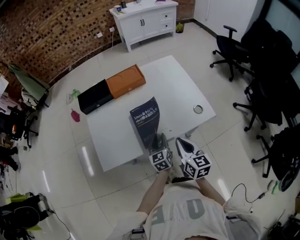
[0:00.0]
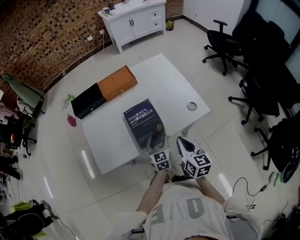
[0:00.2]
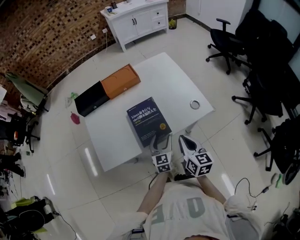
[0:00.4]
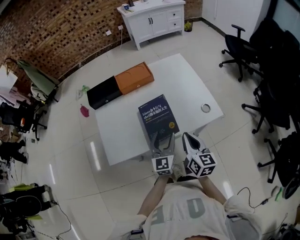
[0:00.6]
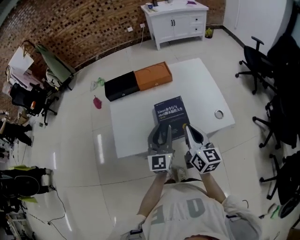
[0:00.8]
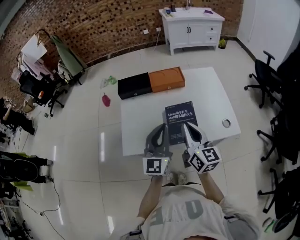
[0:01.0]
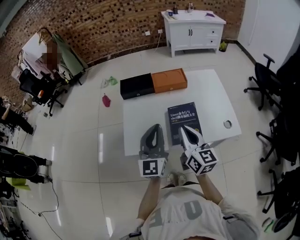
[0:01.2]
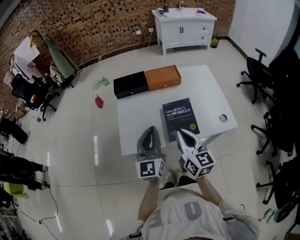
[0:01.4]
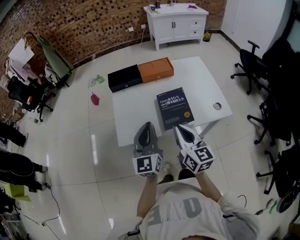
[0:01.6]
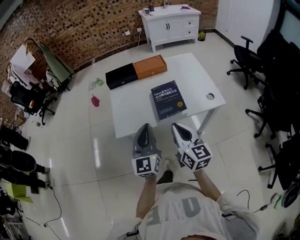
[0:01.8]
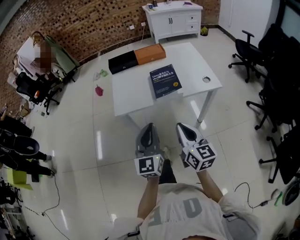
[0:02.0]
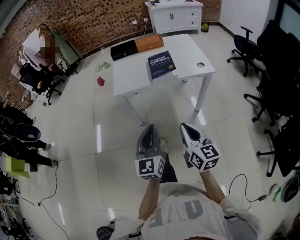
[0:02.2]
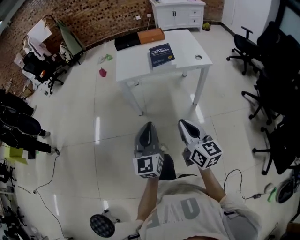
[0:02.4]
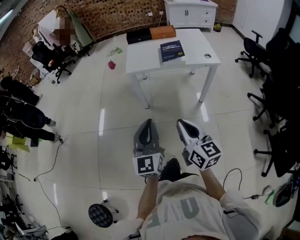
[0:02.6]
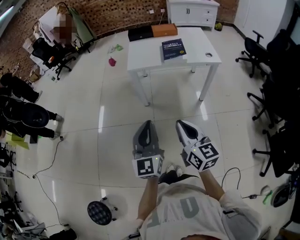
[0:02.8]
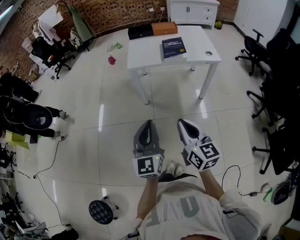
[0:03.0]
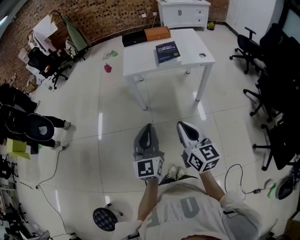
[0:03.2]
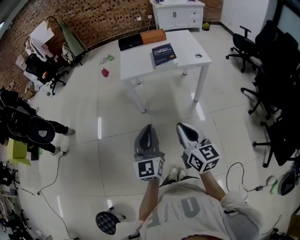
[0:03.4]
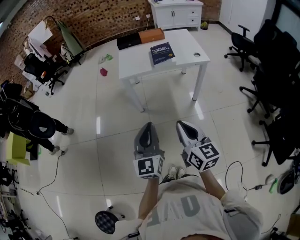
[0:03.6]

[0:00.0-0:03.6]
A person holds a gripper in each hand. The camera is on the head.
0:00.0 to 0:01.8: The left gripper heads upward, backward and to the left, covering about 30 cm, rotates some 30 degrees, and closes, while the right gripper is displaced backward, upward and to the left by approximately 15 cm.
0:01.8 to 0:03.6: The pair of grippers is taken backward, about 40 cm.

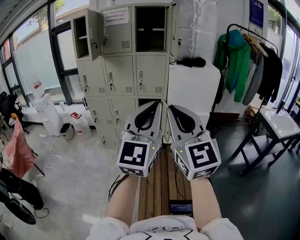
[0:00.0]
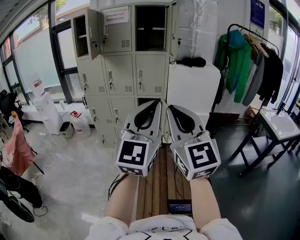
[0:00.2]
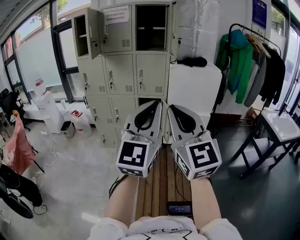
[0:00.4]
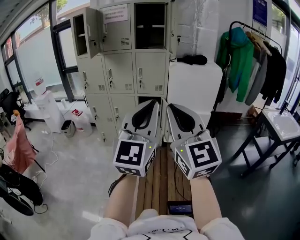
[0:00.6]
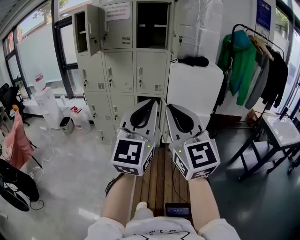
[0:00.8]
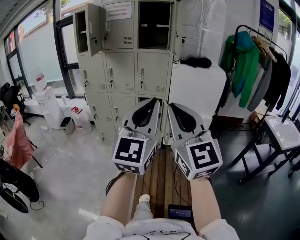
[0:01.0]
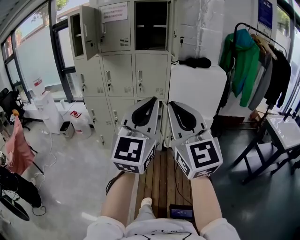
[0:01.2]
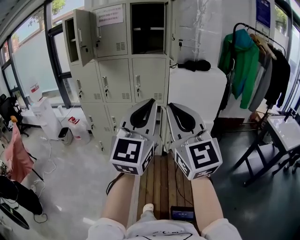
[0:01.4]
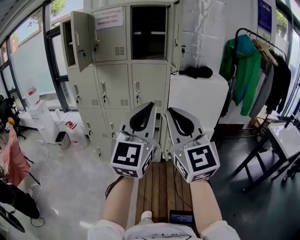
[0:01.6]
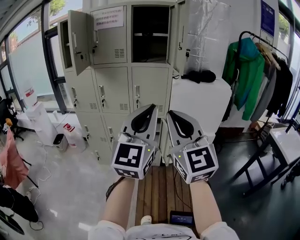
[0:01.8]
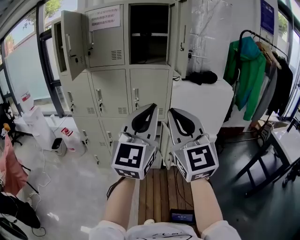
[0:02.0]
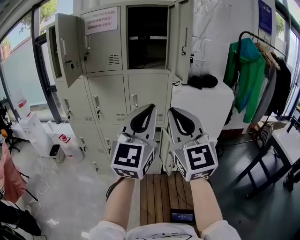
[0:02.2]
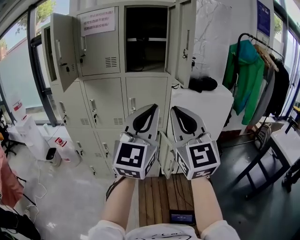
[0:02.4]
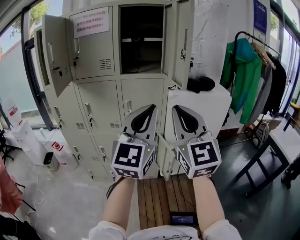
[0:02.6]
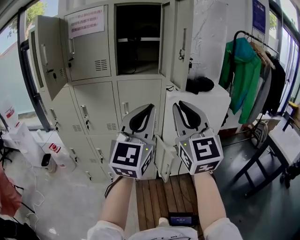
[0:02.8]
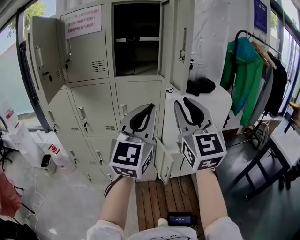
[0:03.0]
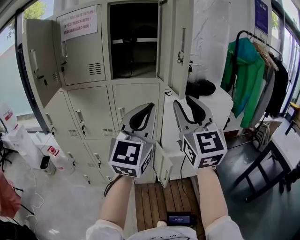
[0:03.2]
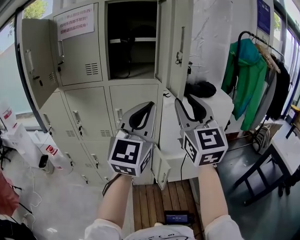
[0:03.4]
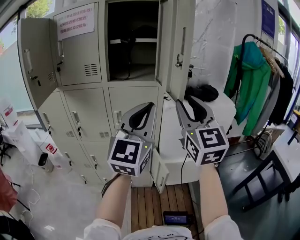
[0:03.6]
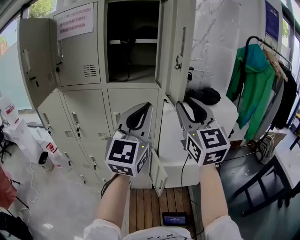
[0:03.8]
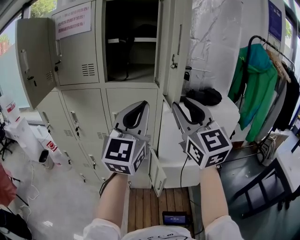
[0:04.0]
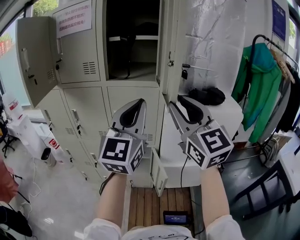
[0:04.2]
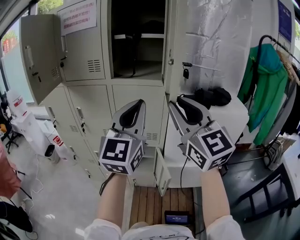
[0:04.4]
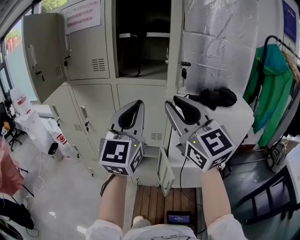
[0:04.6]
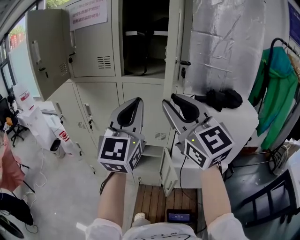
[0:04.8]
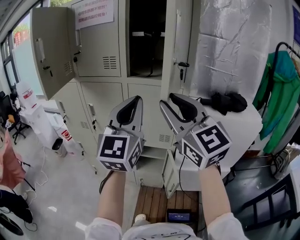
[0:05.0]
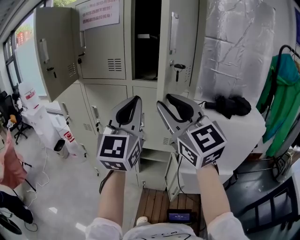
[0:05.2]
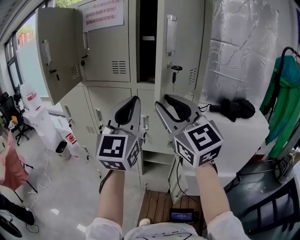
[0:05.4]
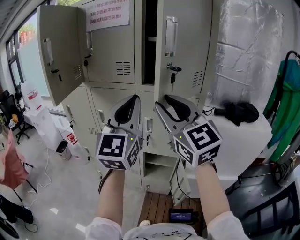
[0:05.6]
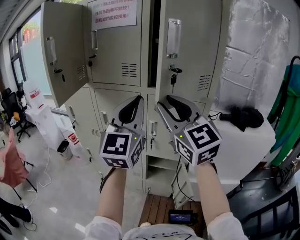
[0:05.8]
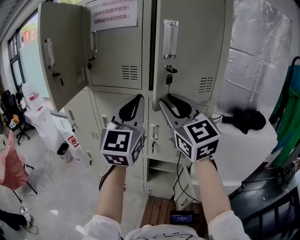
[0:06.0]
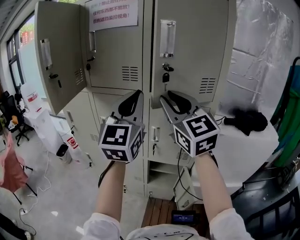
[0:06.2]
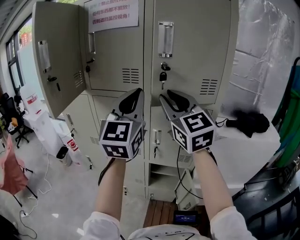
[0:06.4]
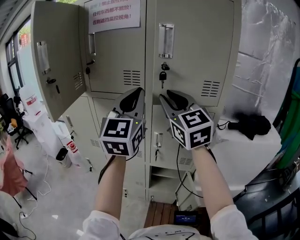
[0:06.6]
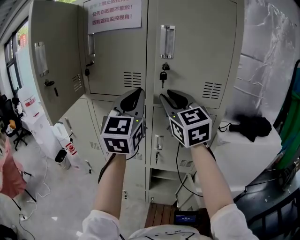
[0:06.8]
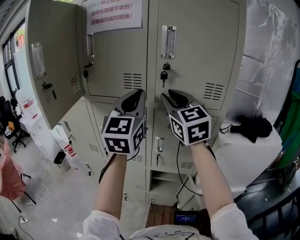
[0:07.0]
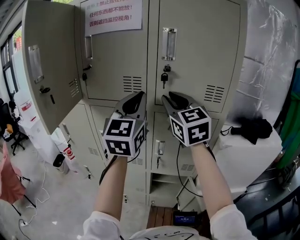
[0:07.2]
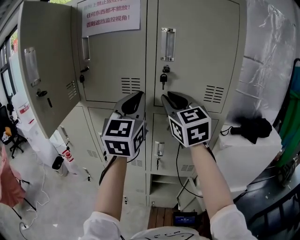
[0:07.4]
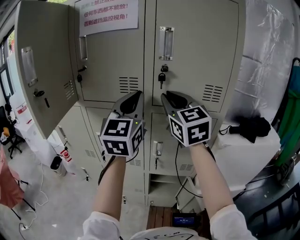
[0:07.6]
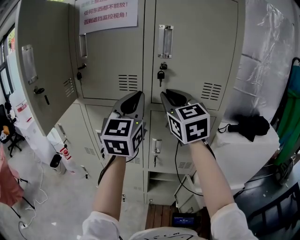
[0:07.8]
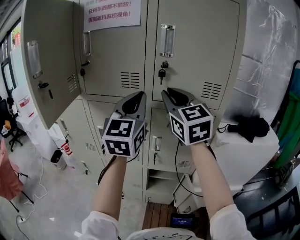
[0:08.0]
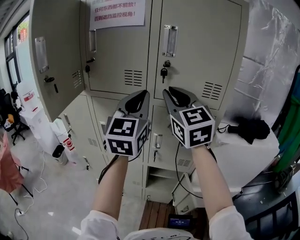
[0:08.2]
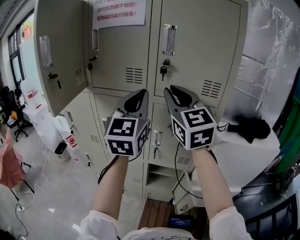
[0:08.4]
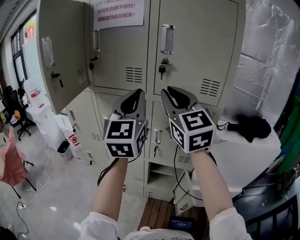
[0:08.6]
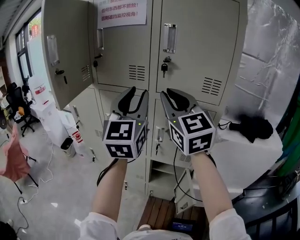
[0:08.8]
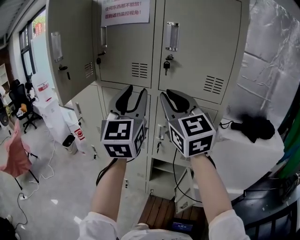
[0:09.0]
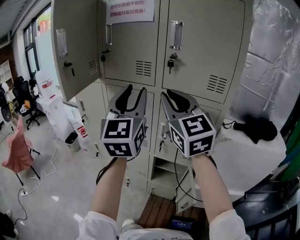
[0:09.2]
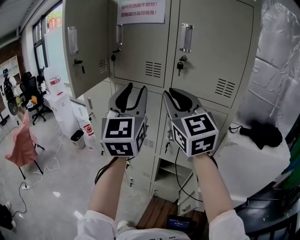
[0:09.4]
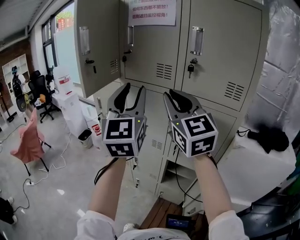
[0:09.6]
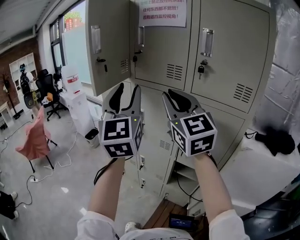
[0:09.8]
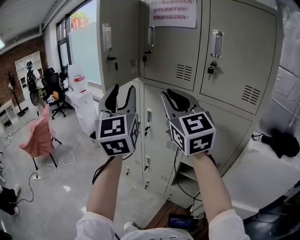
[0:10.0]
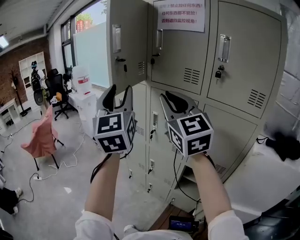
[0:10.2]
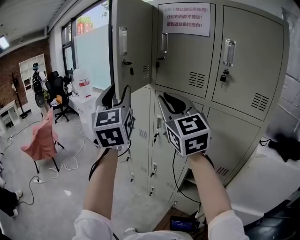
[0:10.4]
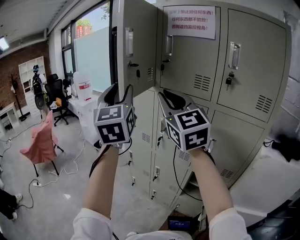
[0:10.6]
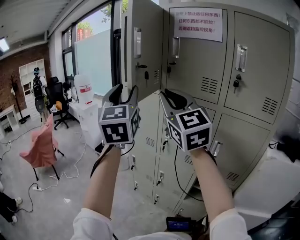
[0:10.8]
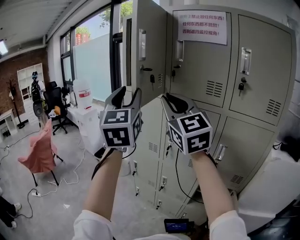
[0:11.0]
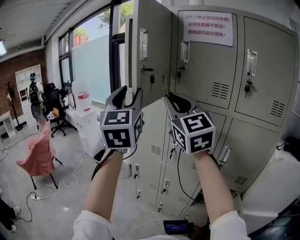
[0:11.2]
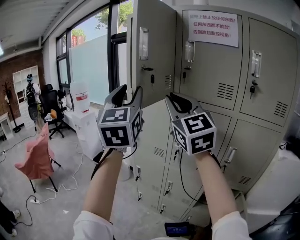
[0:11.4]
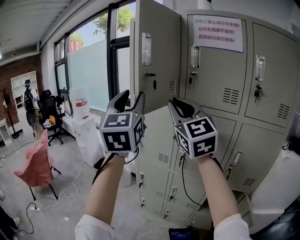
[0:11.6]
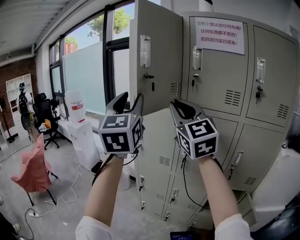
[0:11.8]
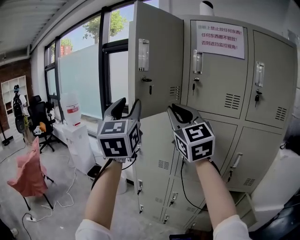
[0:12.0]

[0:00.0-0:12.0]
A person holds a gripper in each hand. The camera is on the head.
0:00.0 to 0:01.6: The grippers both shift forward by approximately 15 cm.
0:01.6 to 0:03.0: The grippers both shift forward by about 25 cm.
0:03.0 to 0:04.4: Both grippers move forward, approximately 10 cm. The right gripper rotates some 20 degrees.
0:04.4 to 0:06.0: The right gripper goes roughly 20 cm forward and to the left. Meanwhile the left gripper travels to the left and forward by roughly 20 cm.
0:06.0 to 0:07.6: Both grippers move forward, roughly 15 cm.
0:07.6 to 0:09.0: Both grippers travel together backward, some 10 cm. The left gripper opens up.
0:09.0 to 0:10.4: Both grippers move to the left, approximately 20 cm. The left gripper rotates some 30 degrees.
0:10.4 to 0:12.0: The two grippers go about 20 cm forward and to the left.

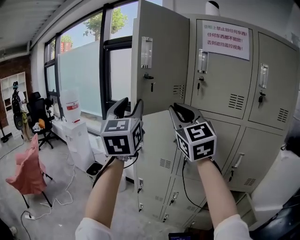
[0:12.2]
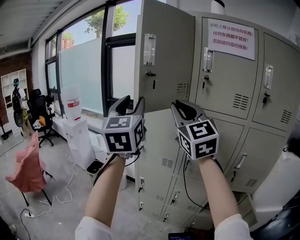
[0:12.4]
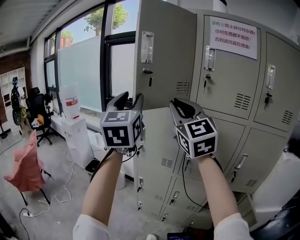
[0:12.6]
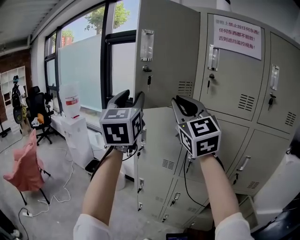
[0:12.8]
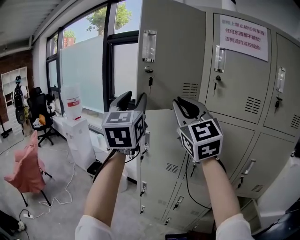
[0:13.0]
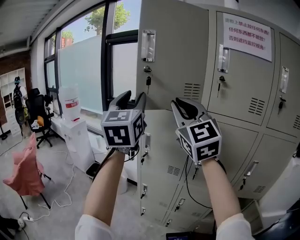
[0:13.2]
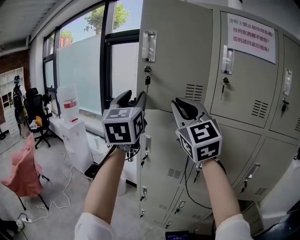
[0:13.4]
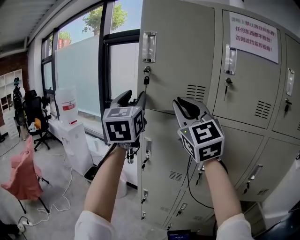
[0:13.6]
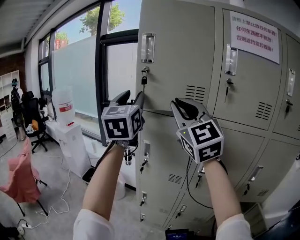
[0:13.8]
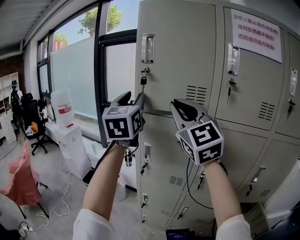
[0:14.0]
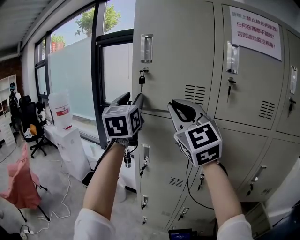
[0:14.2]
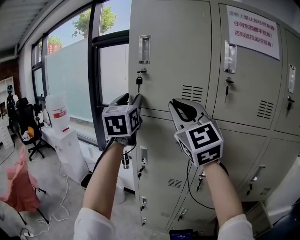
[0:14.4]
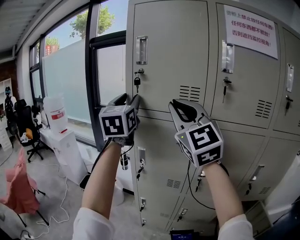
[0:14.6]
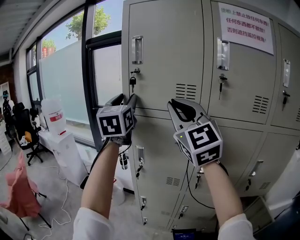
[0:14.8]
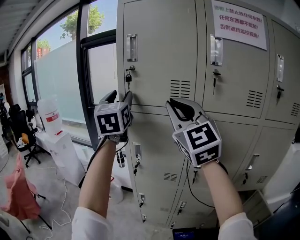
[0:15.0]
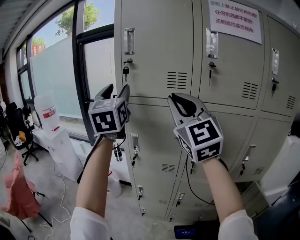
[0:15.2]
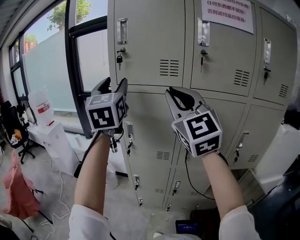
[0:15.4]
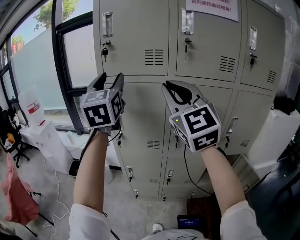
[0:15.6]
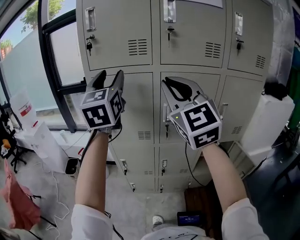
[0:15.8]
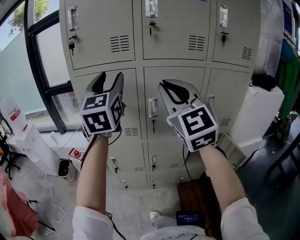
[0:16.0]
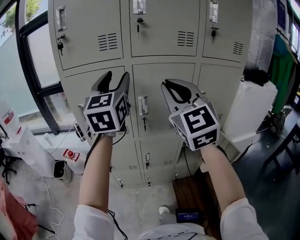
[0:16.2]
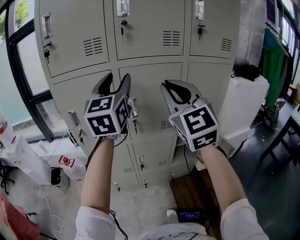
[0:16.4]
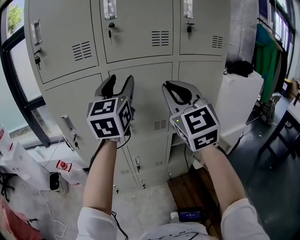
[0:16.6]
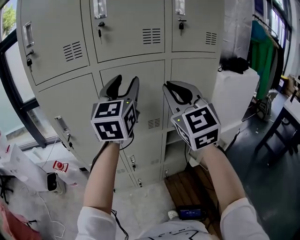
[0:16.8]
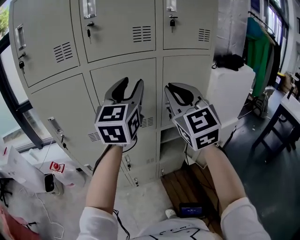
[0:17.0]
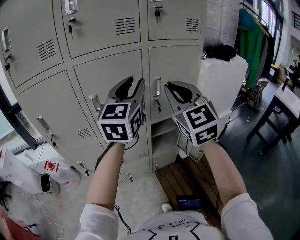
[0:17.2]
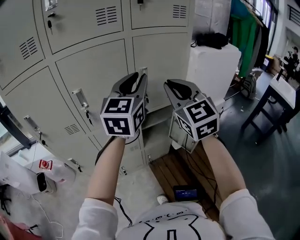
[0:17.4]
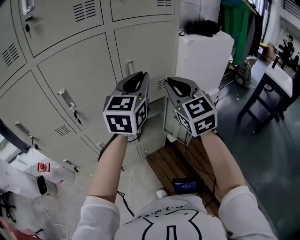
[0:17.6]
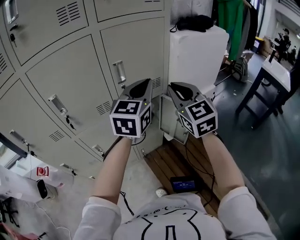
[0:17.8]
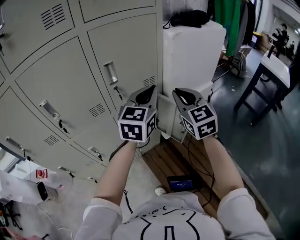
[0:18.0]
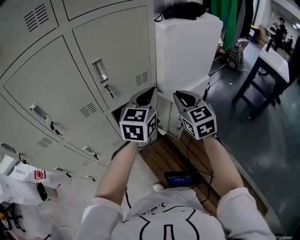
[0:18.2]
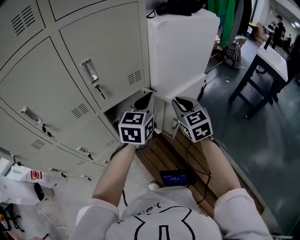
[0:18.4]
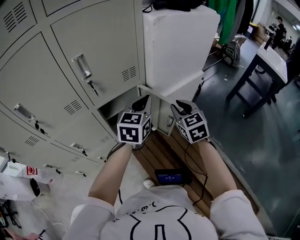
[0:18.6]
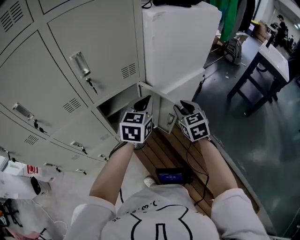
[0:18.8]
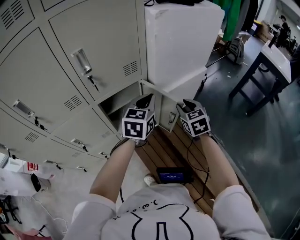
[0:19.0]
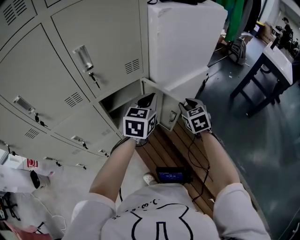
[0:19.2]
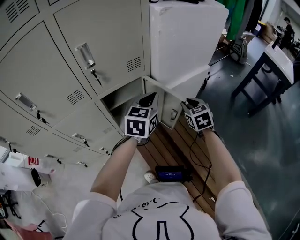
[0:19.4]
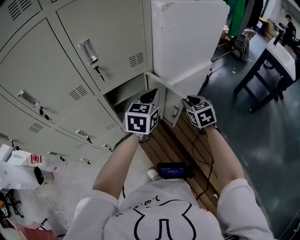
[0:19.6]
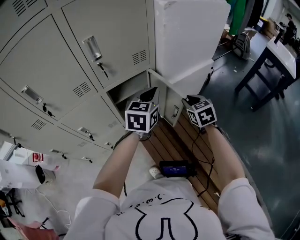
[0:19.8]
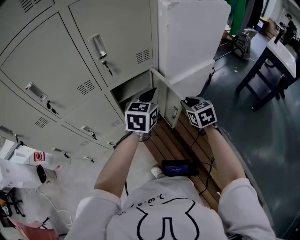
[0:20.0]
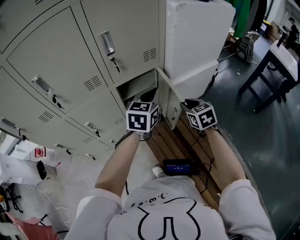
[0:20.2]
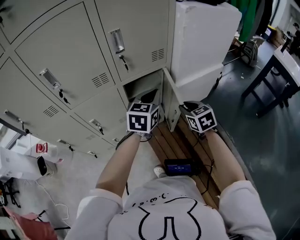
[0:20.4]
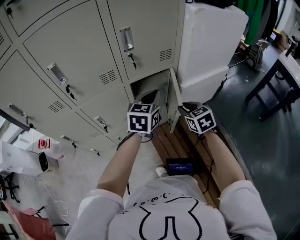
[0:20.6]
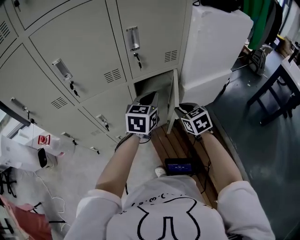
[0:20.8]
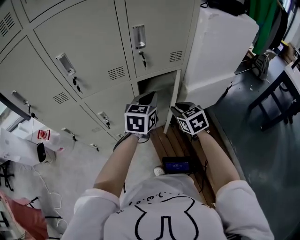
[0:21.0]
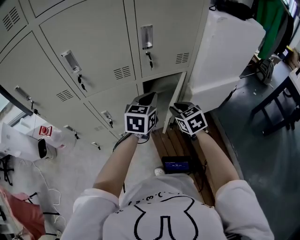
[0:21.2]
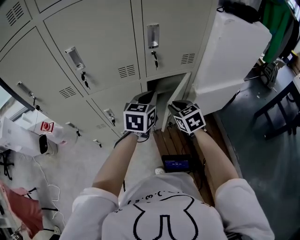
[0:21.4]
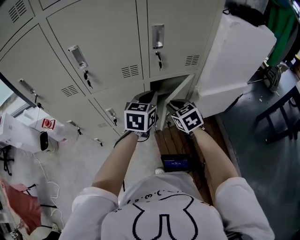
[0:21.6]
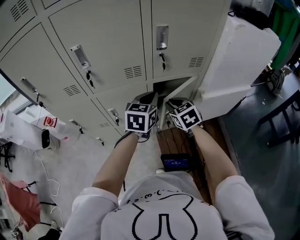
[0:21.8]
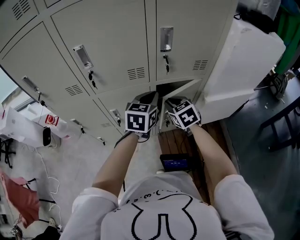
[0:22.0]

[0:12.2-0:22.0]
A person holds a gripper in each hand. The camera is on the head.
0:12.2 to 0:13.6: Both grippers move forward, some 15 cm.
0:13.6 to 0:15.0: The left gripper heads forward, covering about 10 cm.
0:15.0 to 0:16.4: The right gripper moves roughly 25 cm, and rotates roughly 30 degrees. The left gripper changes place by roughly 30 cm, and changes its angle by approximately 30 degrees.
0:16.4 to 0:17.8: The right gripper changes place by roughly 35 cm, and rotates approximately 30 degrees, while the left gripper ends up approximately 40 cm from where it was, swivels approximately 40 degrees, and closes its fingers.
0:17.8 to 0:19.2: The two grippers go about 25 cm downward and to the right. The right gripper points its fingers approximately 30 degrees further downward.
0:19.2 to 0:20.6: The grippers both shift to the left and backward by roughly 15 cm.
0:20.6 to 0:22.0: The left gripper goes about 10 cm to the left. The right gripper travels to the left and forward by some 20 cm.
